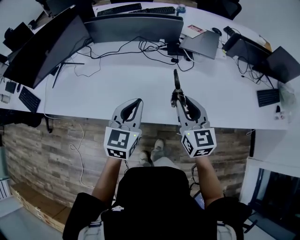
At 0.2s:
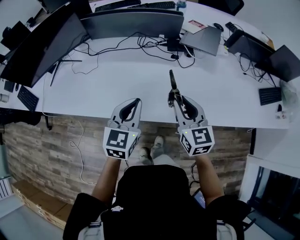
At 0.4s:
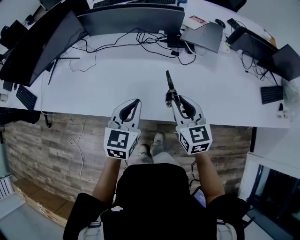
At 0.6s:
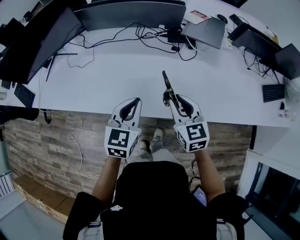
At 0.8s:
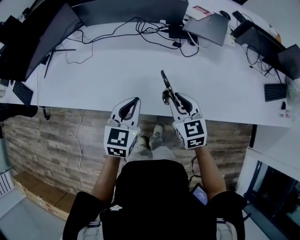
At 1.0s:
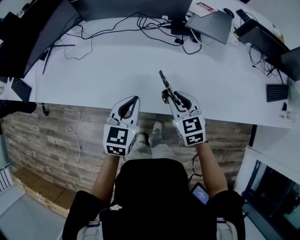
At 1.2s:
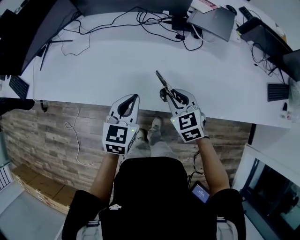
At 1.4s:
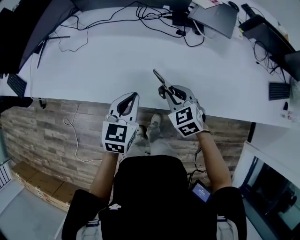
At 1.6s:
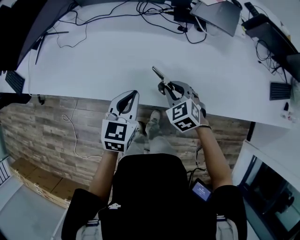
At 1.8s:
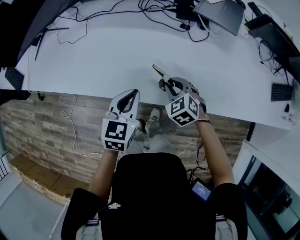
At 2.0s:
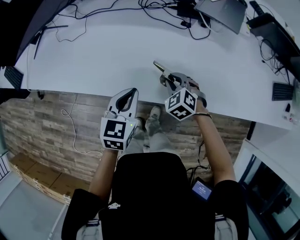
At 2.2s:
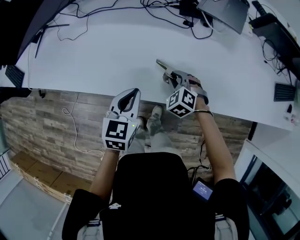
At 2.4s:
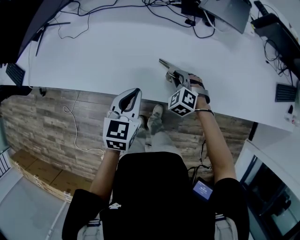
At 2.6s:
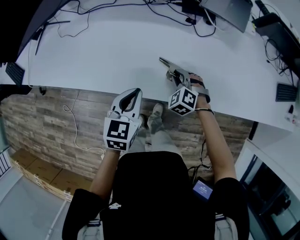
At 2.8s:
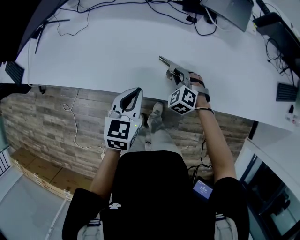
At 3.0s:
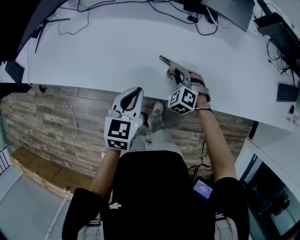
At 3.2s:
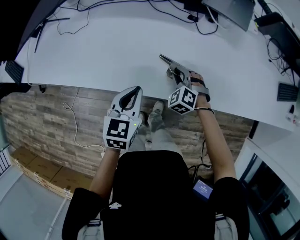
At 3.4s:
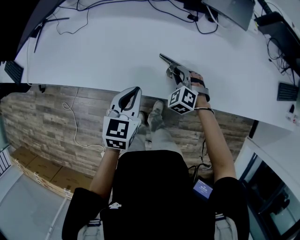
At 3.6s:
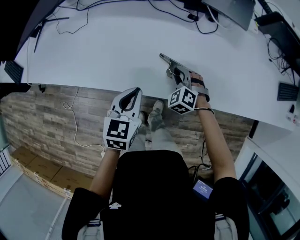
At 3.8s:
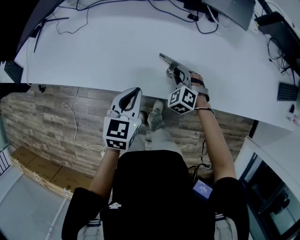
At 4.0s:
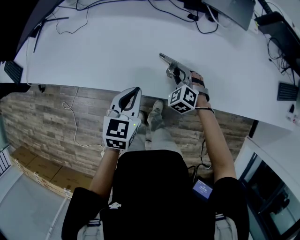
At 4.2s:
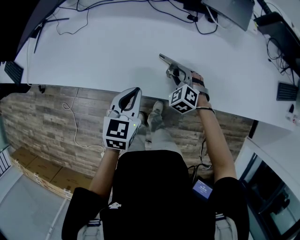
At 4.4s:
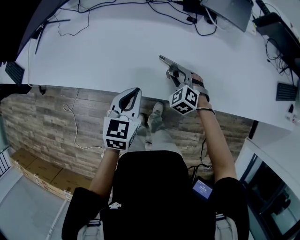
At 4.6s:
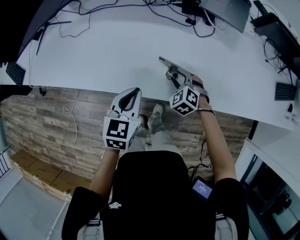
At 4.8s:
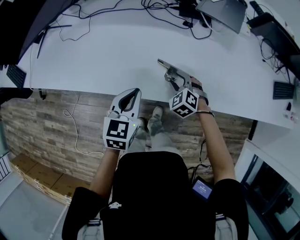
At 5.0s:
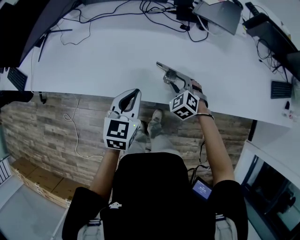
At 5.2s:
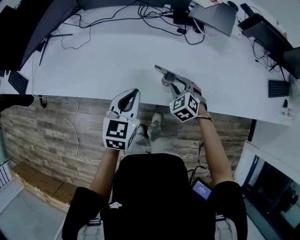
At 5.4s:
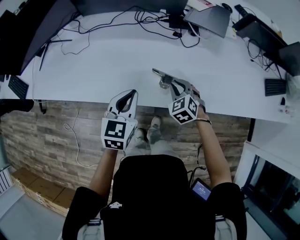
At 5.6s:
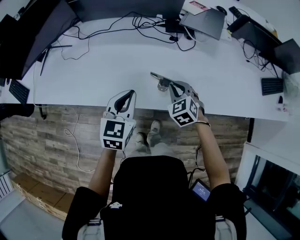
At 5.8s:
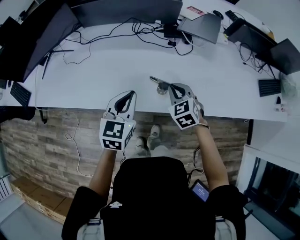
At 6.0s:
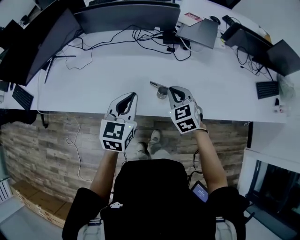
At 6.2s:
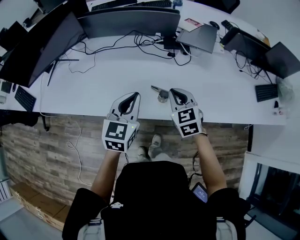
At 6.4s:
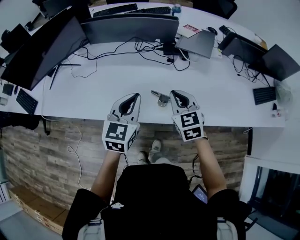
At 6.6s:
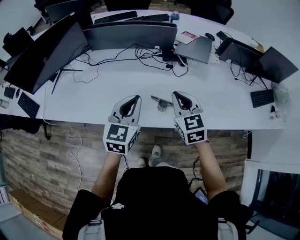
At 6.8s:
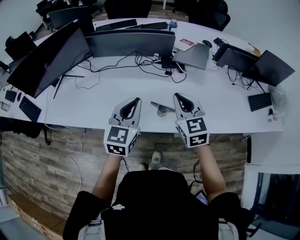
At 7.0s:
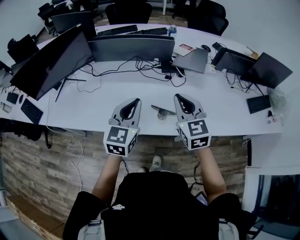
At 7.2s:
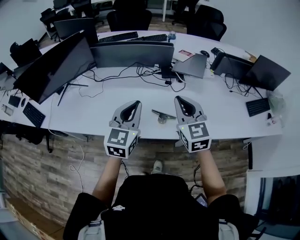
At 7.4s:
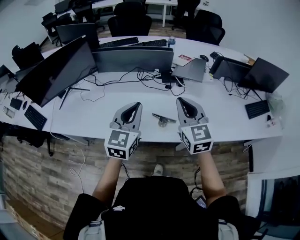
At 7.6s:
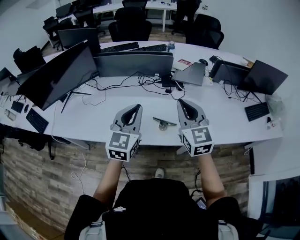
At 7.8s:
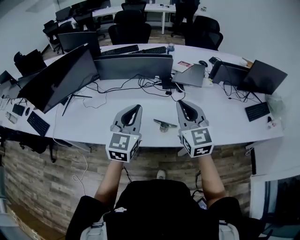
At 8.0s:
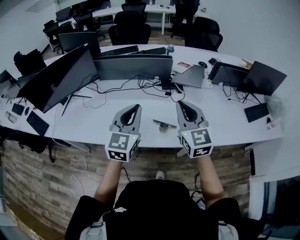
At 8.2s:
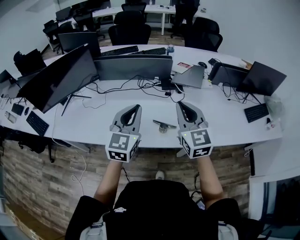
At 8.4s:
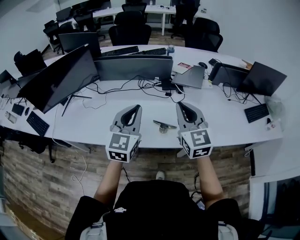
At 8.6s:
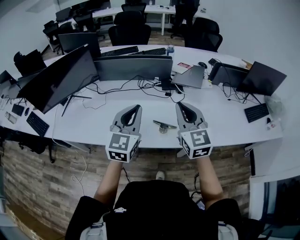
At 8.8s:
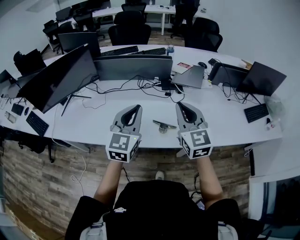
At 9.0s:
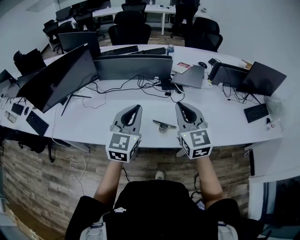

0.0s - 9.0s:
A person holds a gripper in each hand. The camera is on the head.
0.0s - 1.6s: The grippers both shift downward by approximately 20 cm. The right gripper angles its fingers downward, by approximately 40 degrees.
1.6s - 3.0s: The right gripper shifts roughly 10 cm downward, and turns by roughly 20 degrees.
3.0s - 4.4s: There are only small adjustments of the grippers.
4.4s - 6.0s: The two grippers go some 15 cm upward. The right gripper swivels some 30 degrees, and closes its fingers.
6.0s - 7.6s: The left gripper heads upward, covering roughly 15 cm. The right gripper heads upward, covering roughly 25 cm, and tips its fingers upward by about 30 degrees.
7.6s - 9.0s: There are only small adjustments of the grippers.

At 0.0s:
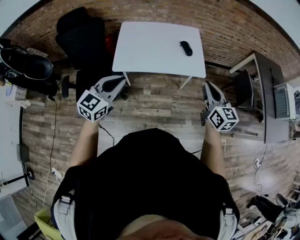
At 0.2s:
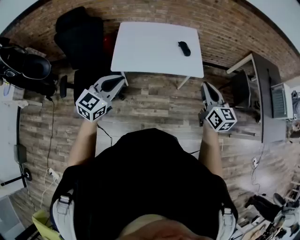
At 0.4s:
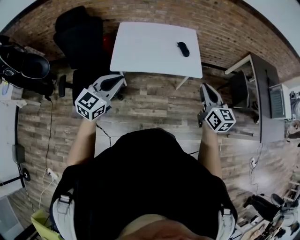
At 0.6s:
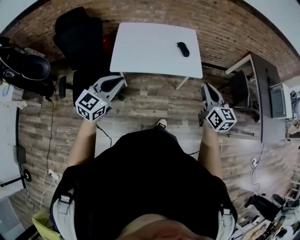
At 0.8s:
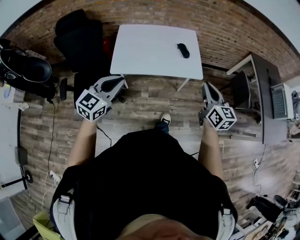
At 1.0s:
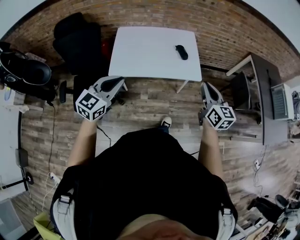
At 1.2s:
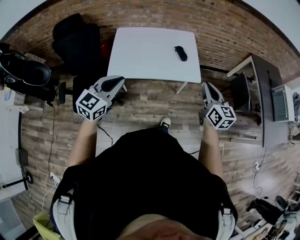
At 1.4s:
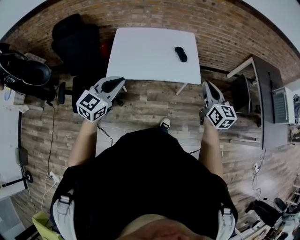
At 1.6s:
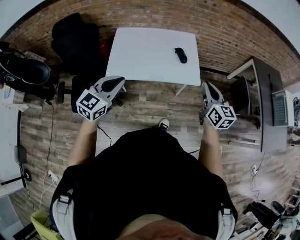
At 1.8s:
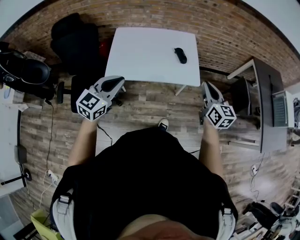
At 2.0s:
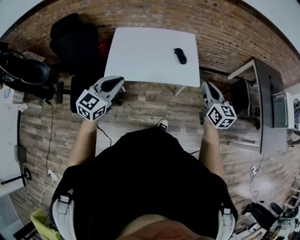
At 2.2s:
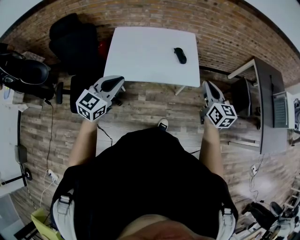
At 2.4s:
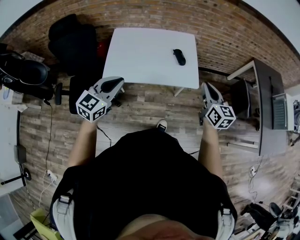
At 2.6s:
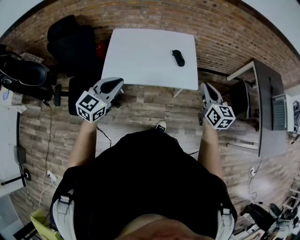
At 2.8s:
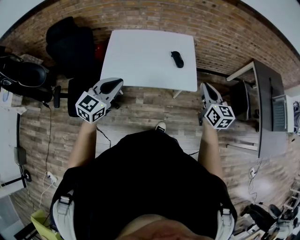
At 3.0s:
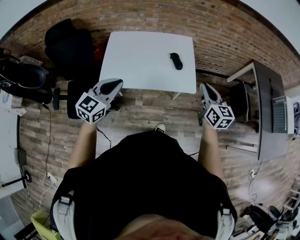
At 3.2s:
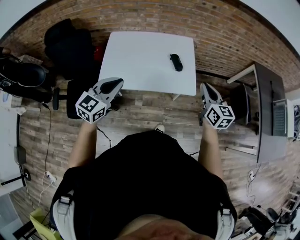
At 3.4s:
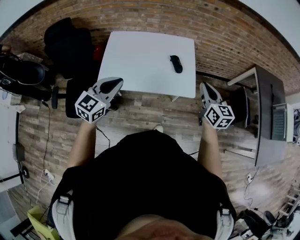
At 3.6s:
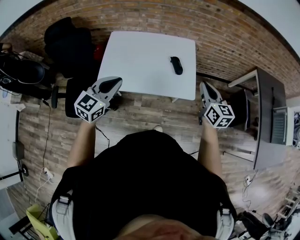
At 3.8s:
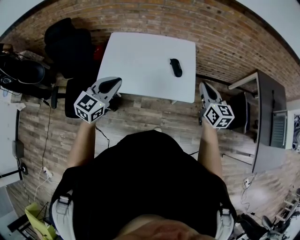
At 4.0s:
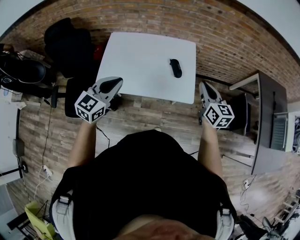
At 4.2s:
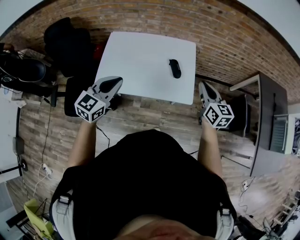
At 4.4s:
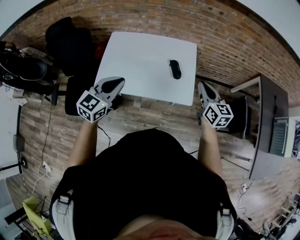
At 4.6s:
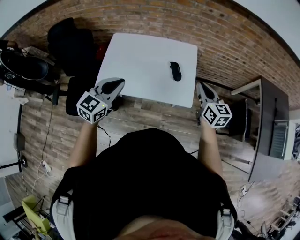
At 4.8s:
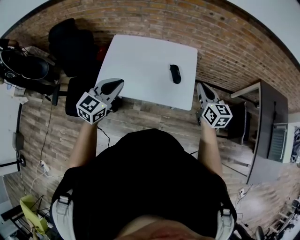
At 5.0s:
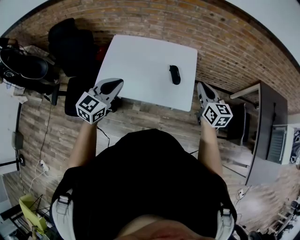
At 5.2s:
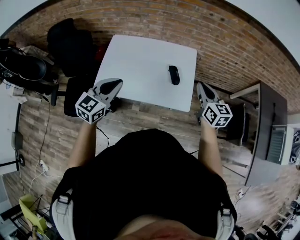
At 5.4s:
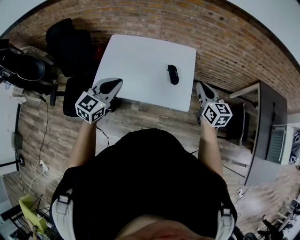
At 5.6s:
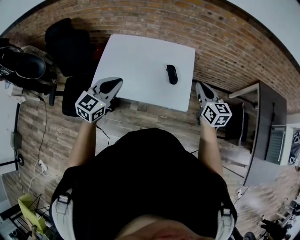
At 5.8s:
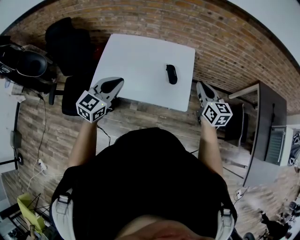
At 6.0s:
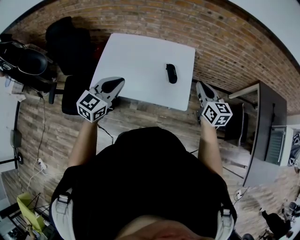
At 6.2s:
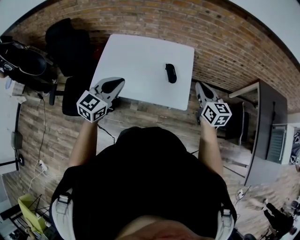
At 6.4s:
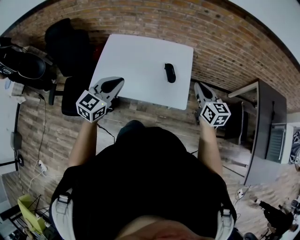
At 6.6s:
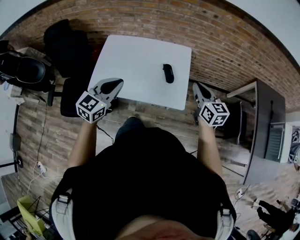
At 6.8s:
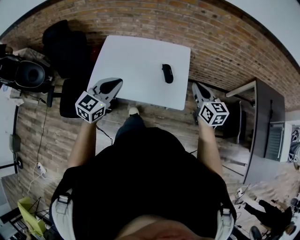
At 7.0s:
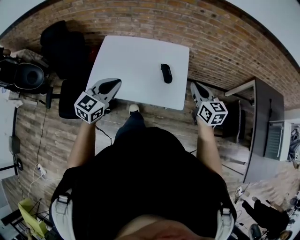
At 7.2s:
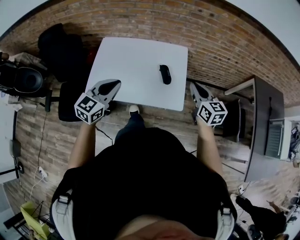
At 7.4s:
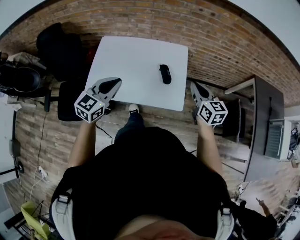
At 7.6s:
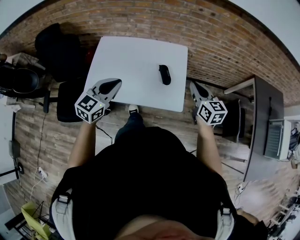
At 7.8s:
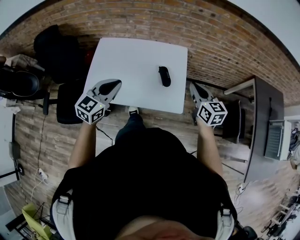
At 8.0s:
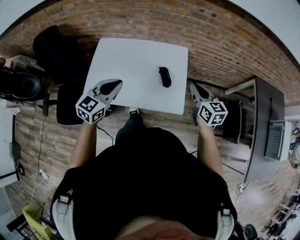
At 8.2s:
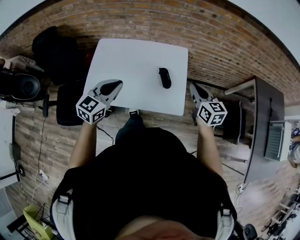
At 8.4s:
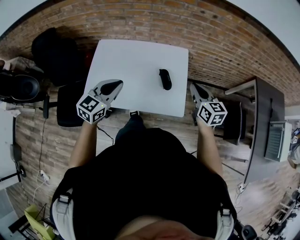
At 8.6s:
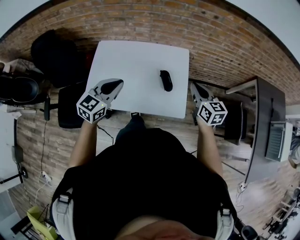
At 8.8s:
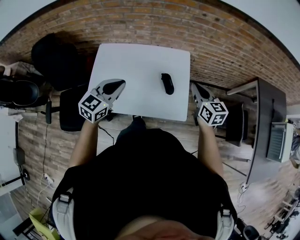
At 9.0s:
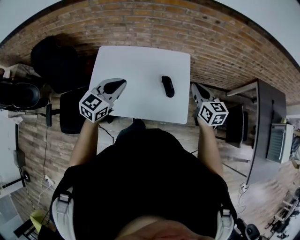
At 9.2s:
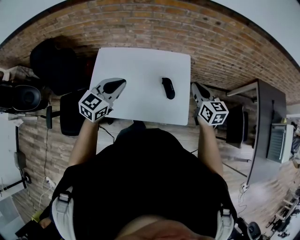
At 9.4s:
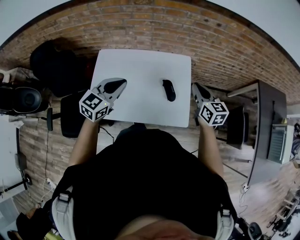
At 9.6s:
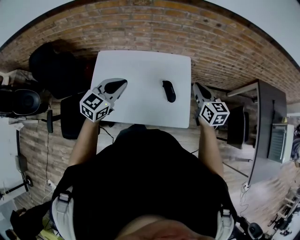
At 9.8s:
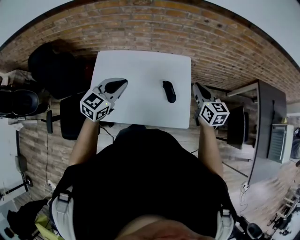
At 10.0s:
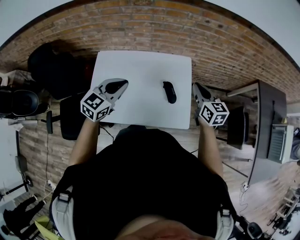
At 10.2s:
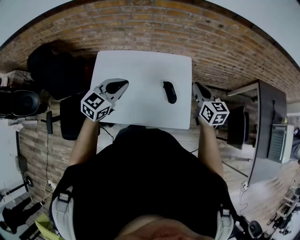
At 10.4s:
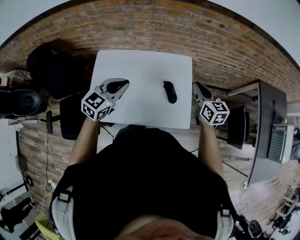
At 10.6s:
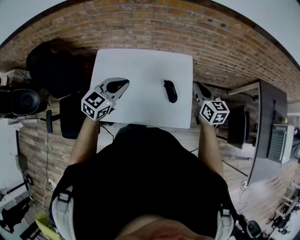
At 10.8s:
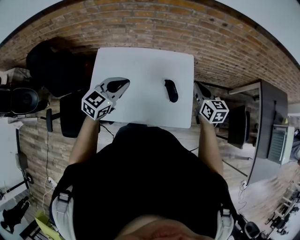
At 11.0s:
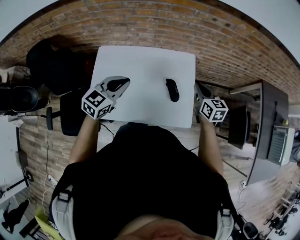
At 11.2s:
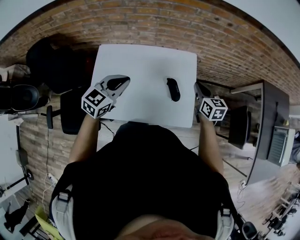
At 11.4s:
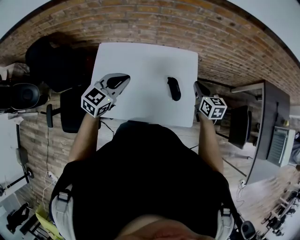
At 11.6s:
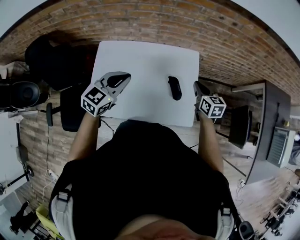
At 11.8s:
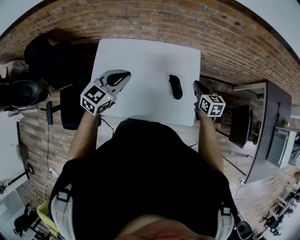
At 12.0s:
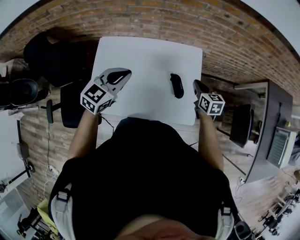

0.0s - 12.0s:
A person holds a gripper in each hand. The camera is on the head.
0.0s - 1.6s: Both grippers move forward, some 5 cm.
1.6s - 3.0s: Both grippers move forward, some 10 cm.
3.0s - 4.4s: The left gripper heads forward and to the right, covering approximately 10 cm; the right gripper travels forward by approximately 15 cm.
4.4s - 6.0s: The grippers move only a little.
6.0s - 7.6s: The grippers make only small movements.
7.6s - 9.0s: Both grippers travel together forward, some 10 cm.
9.0s - 10.4s: The two grippers go about 5 cm forward.
10.4s - 12.0s: The left gripper moves approximately 5 cm. Meanwhile the right gripper goes roughly 15 cm downward.

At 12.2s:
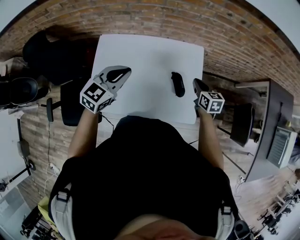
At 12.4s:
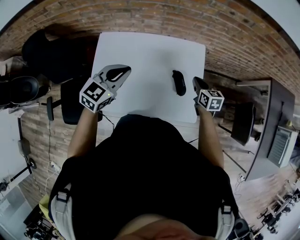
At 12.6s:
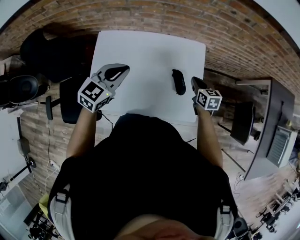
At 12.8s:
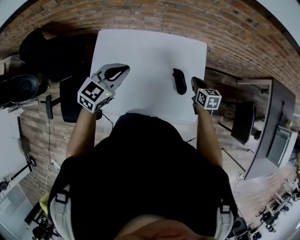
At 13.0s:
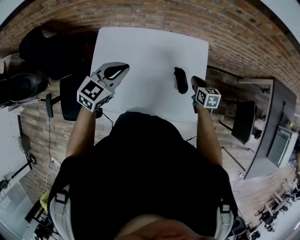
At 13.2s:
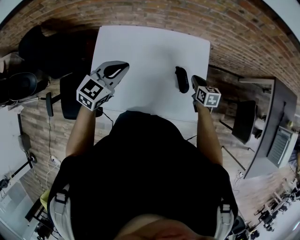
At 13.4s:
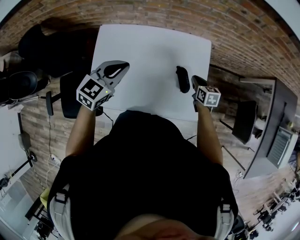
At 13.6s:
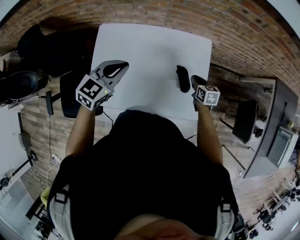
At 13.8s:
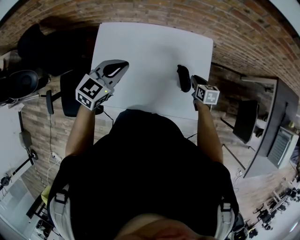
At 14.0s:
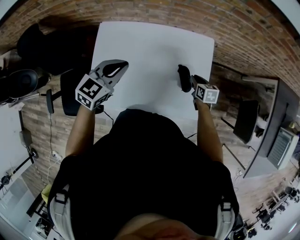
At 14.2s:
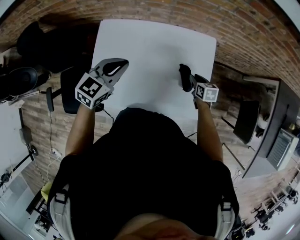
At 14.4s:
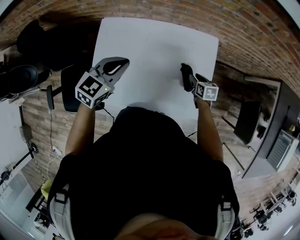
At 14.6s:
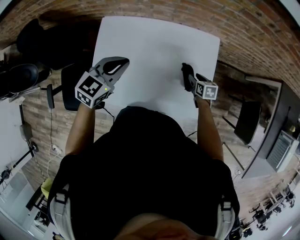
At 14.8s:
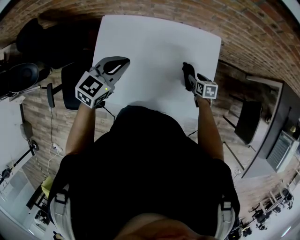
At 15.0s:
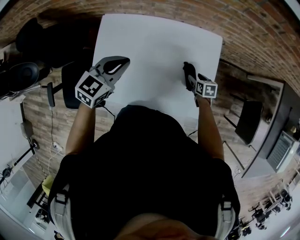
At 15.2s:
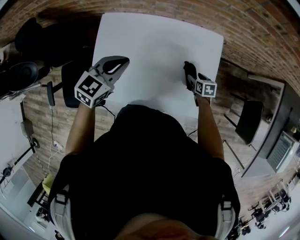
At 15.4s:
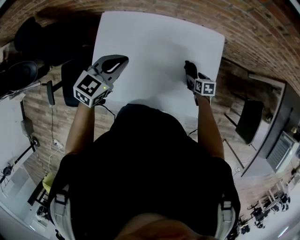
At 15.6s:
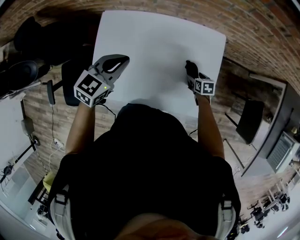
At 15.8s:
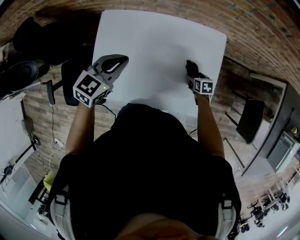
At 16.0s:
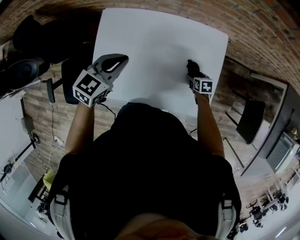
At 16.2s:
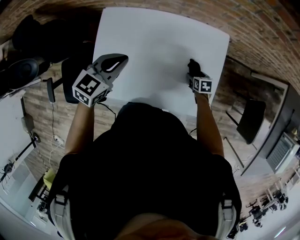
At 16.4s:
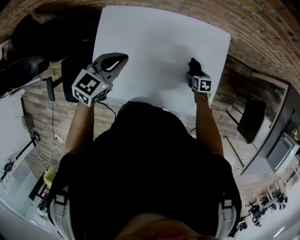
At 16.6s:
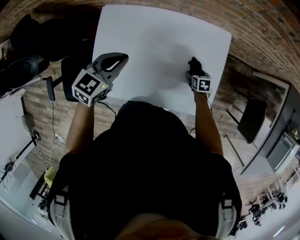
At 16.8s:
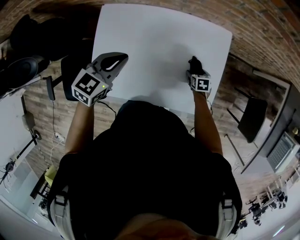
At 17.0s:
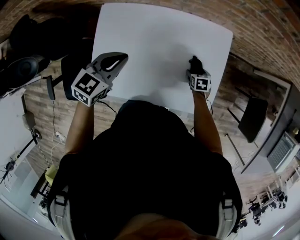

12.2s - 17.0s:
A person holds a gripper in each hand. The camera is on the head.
12.2s - 13.8s: The left gripper ends up roughly 5 cm from where it was; the right gripper shifts some 10 cm downward.
13.8s - 15.4s: The left gripper shifts by roughly 5 cm; the right gripper goes some 10 cm downward, and opens up.
15.4s - 17.0s: The grippers make only small movements.
